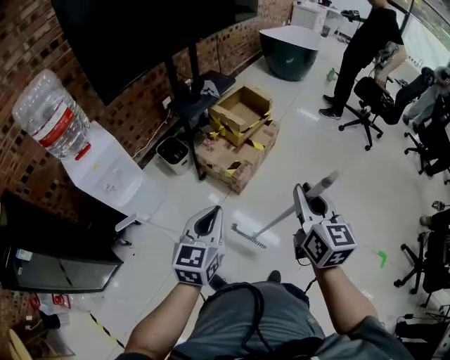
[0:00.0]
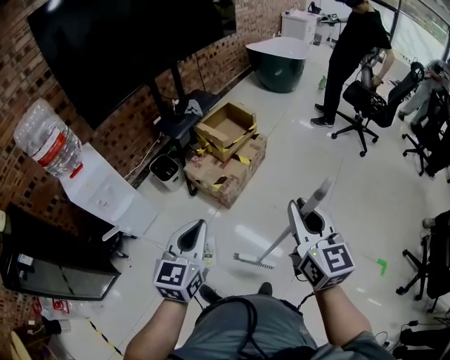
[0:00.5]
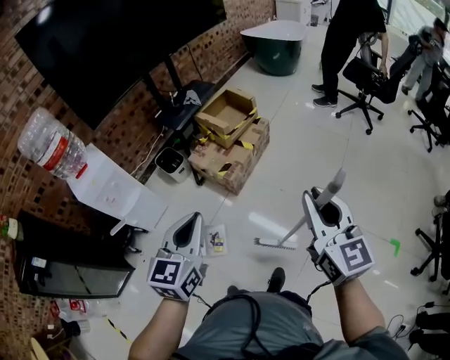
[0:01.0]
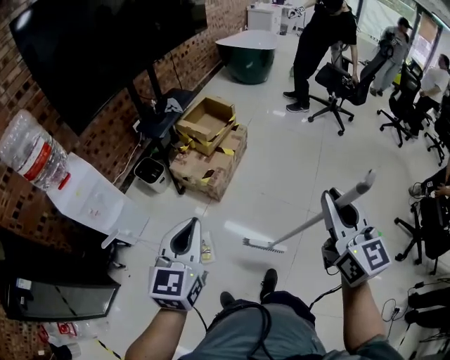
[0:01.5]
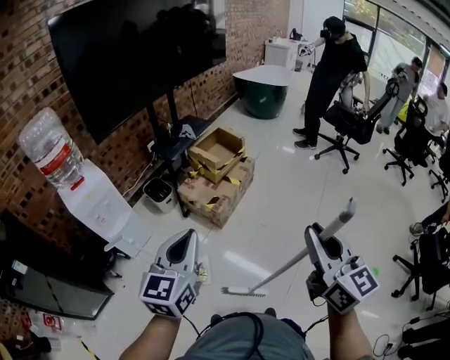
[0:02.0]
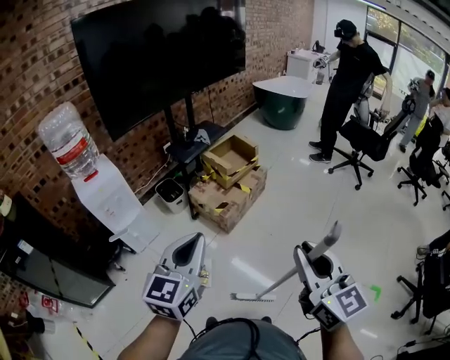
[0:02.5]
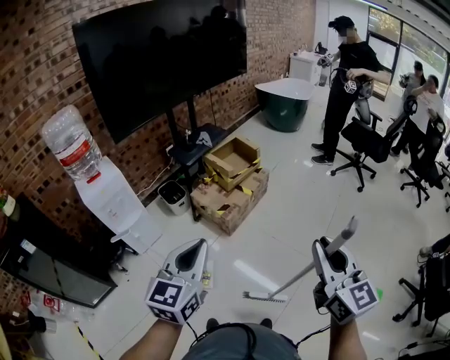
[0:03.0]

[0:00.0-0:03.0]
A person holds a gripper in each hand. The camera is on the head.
0:00.0 to 0:01.5: The right gripper is displaced to the right, backward and upward by roughly 25 cm, while the left gripper is displaced to the right, upward and backward by roughly 15 cm.
0:01.5 to 0:03.0: The left gripper travels to the right, backward and upward by approximately 15 cm, while the right gripper shifts about 10 cm backward and to the right.

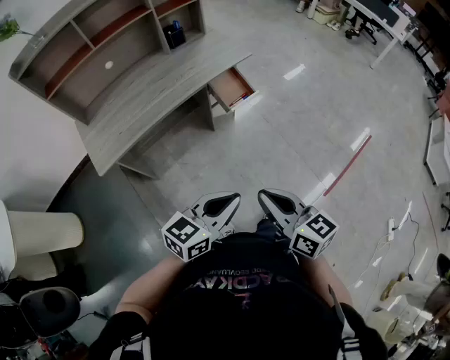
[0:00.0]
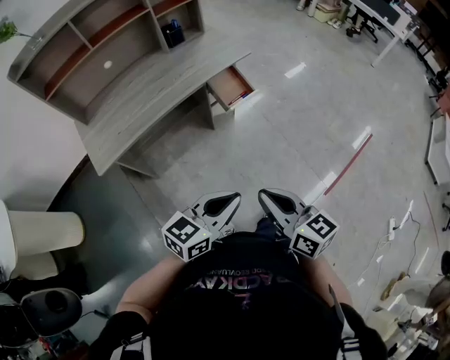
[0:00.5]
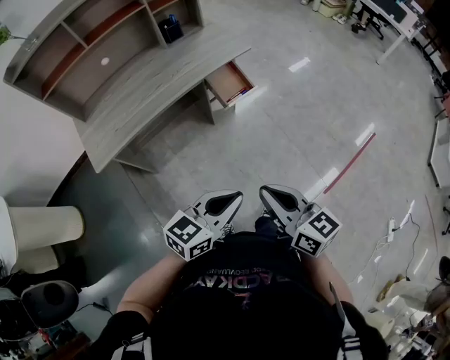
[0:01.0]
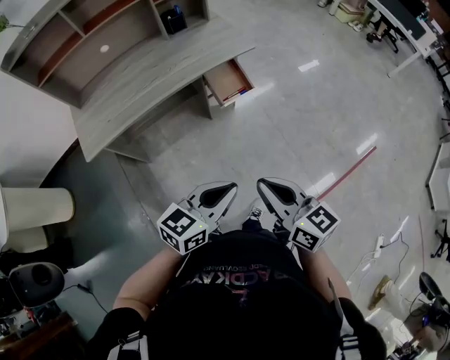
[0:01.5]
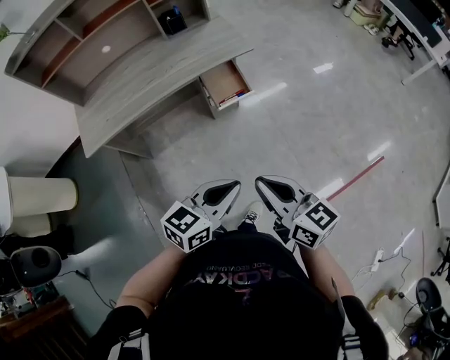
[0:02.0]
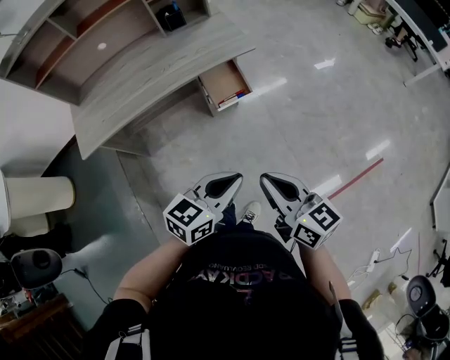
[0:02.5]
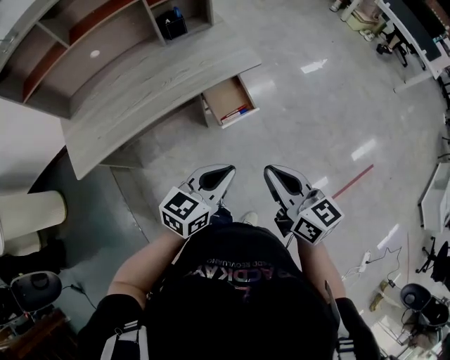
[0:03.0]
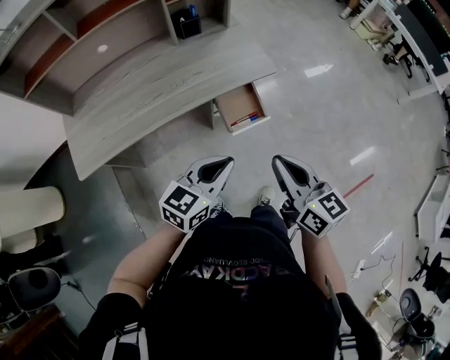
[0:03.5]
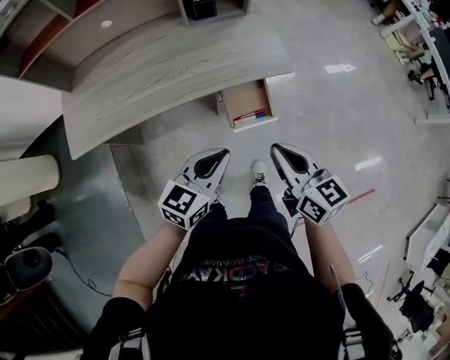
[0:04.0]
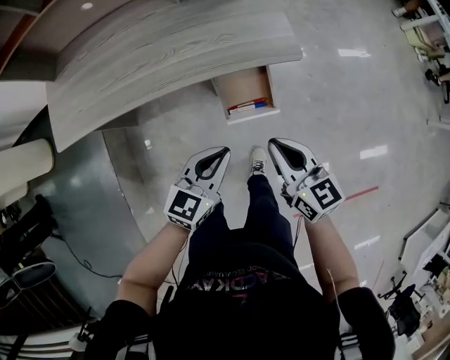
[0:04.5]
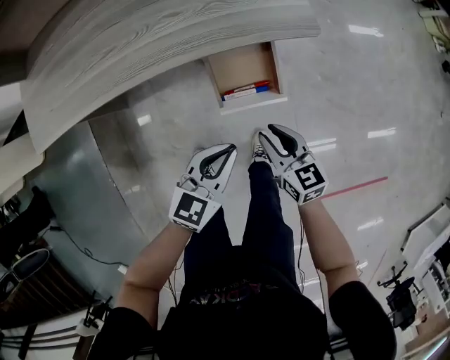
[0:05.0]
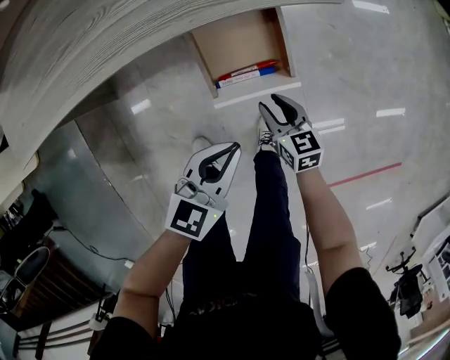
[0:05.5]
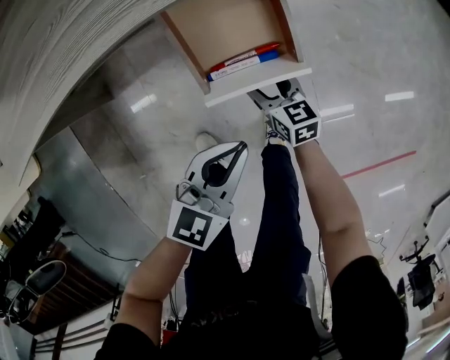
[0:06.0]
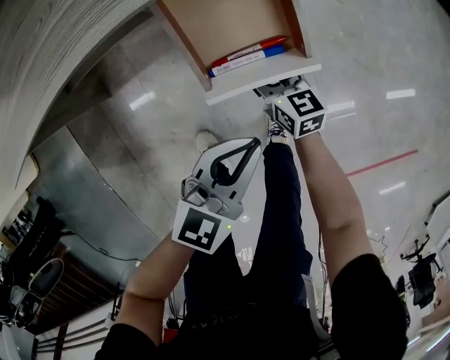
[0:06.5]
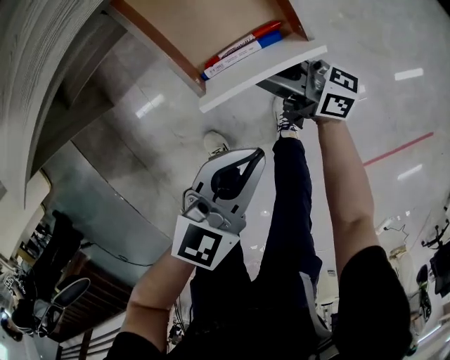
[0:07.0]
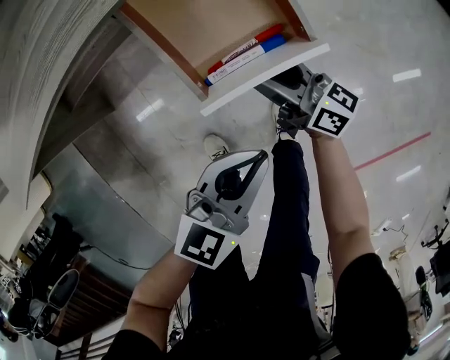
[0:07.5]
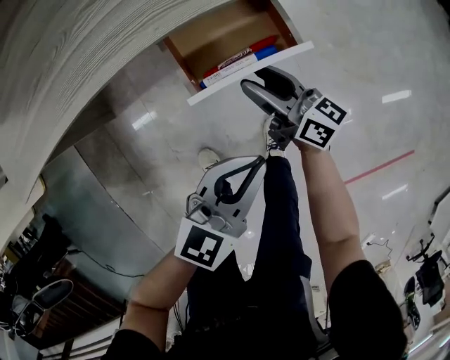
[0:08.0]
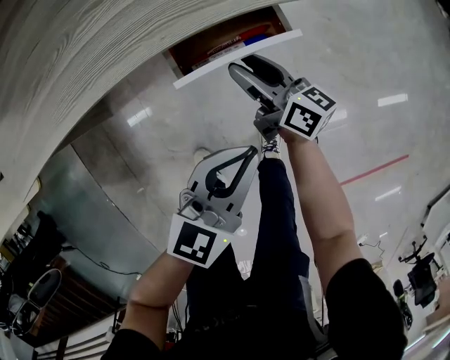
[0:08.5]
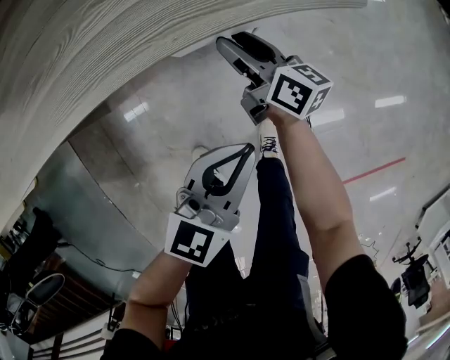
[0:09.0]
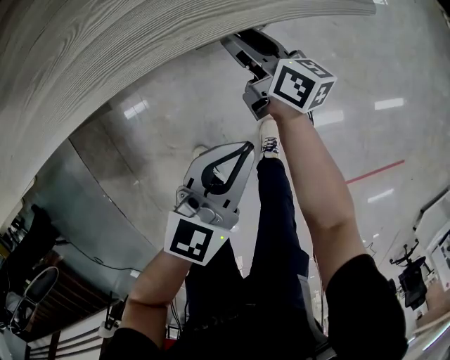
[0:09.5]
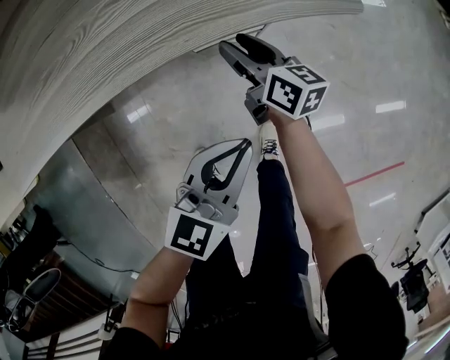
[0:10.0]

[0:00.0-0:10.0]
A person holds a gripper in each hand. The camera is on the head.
0:00.0 to 0:02.0: The two grippers go approximately 15 cm to the right and forward.
0:02.0 to 0:04.0: The two grippers go about 25 cm forward.
0:04.0 to 0:06.0: The right gripper moves downward, roughly 40 cm, and opens up, while the left gripper moves downward, some 20 cm.
0:06.0 to 0:08.0: The right gripper is displaced upward by approximately 10 cm, and angles its fingers upward, by some 30 degrees.
0:08.0 to 0:10.0: The right gripper travels forward by about 10 cm; the left gripper is displaced forward by some 5 cm.

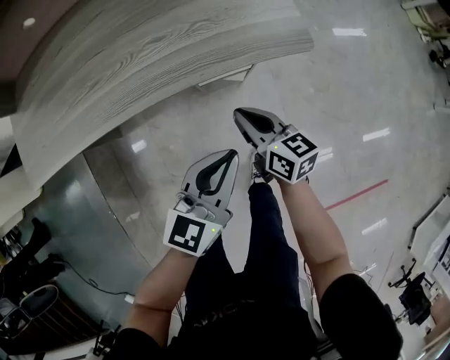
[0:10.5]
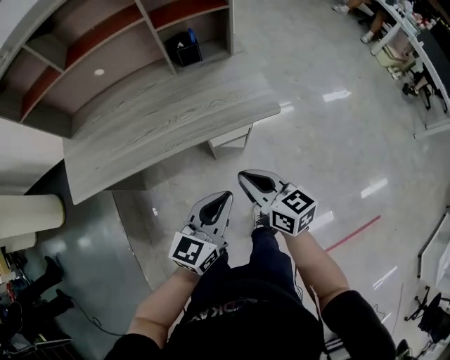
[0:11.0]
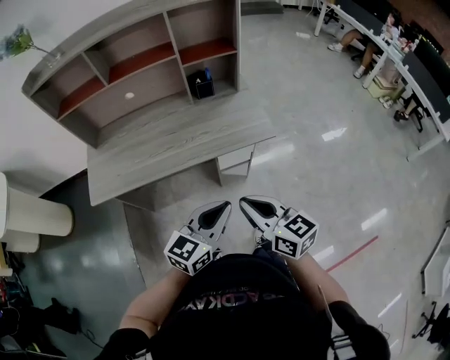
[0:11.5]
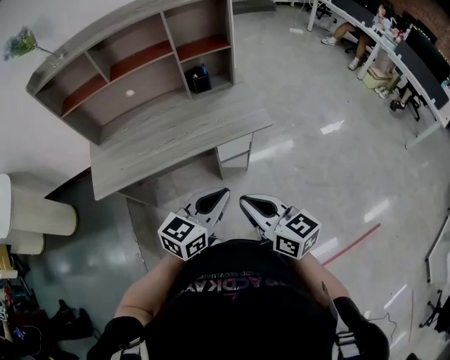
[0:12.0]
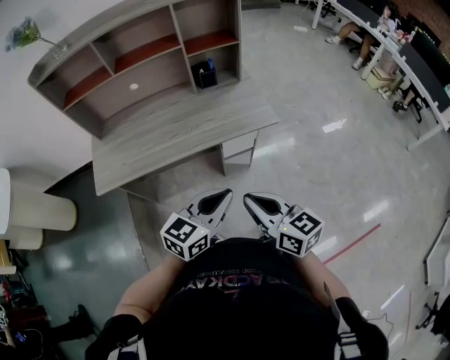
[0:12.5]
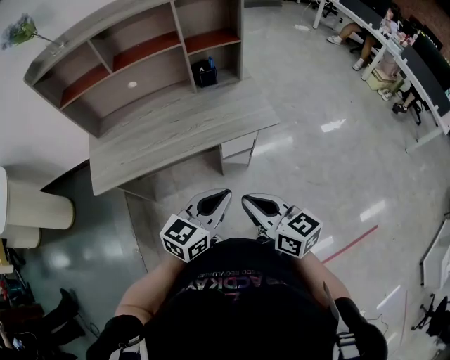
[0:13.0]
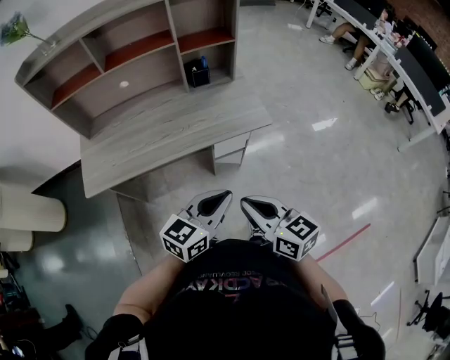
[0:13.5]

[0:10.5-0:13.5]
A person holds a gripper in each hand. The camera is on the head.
0:10.5 to 0:12.0: The right gripper is displaced upward and backward by some 35 cm; the left gripper goes about 20 cm upward and backward.
0:12.0 to 0:13.5: The grippers make only small movements.

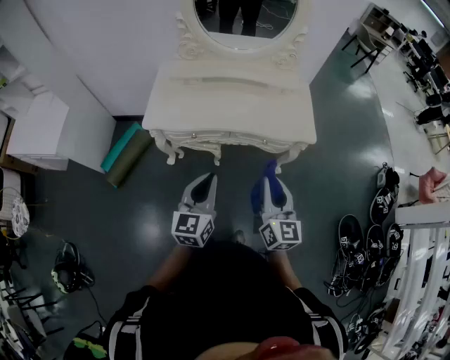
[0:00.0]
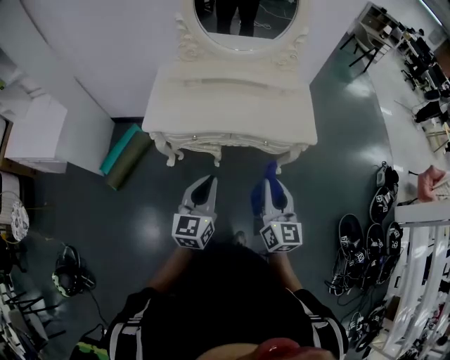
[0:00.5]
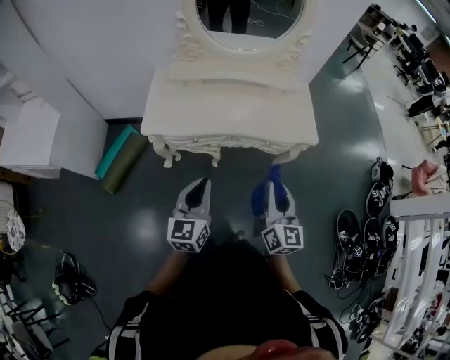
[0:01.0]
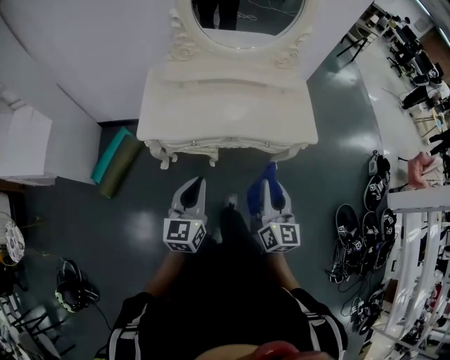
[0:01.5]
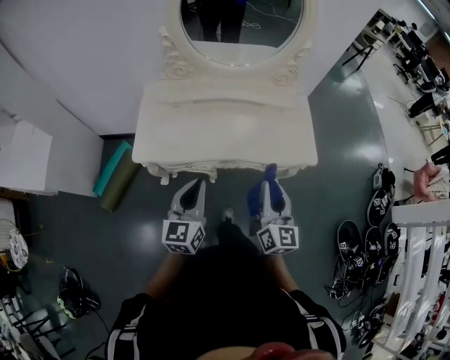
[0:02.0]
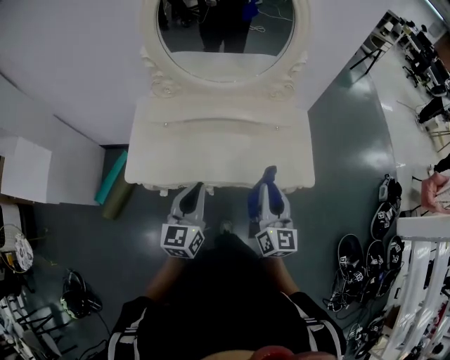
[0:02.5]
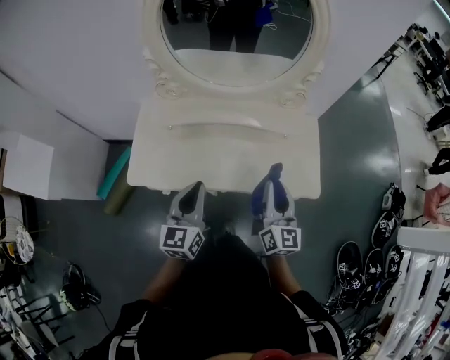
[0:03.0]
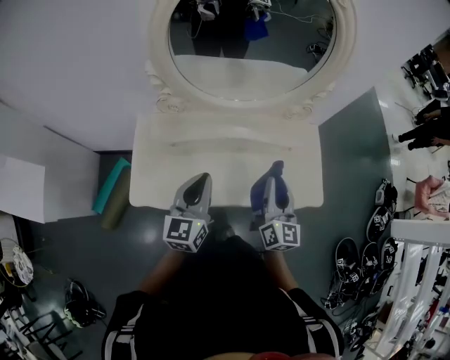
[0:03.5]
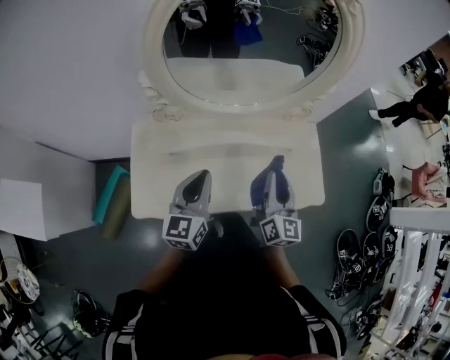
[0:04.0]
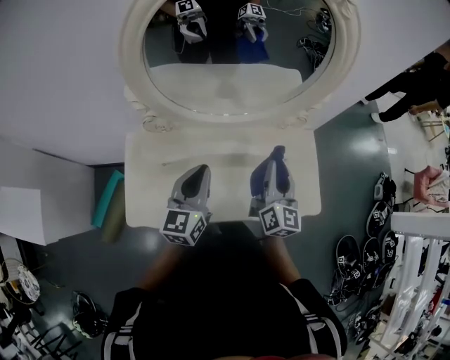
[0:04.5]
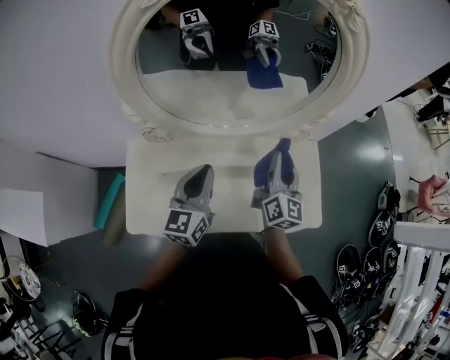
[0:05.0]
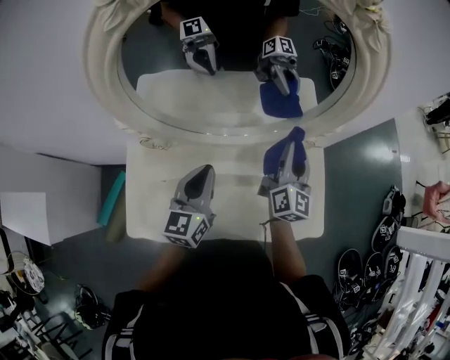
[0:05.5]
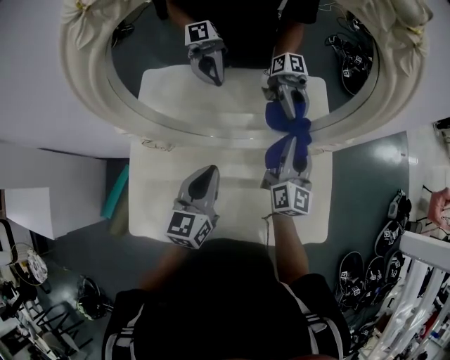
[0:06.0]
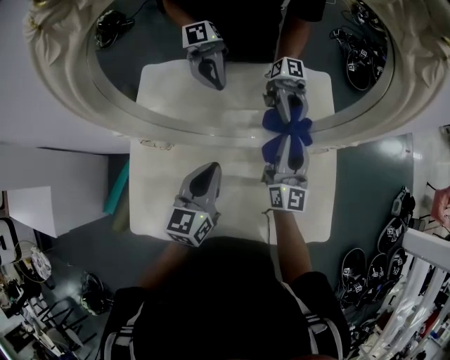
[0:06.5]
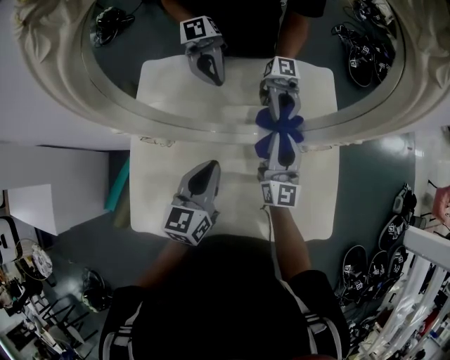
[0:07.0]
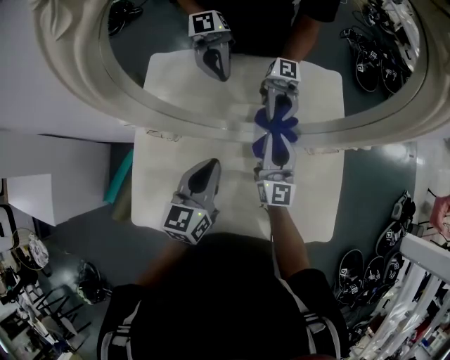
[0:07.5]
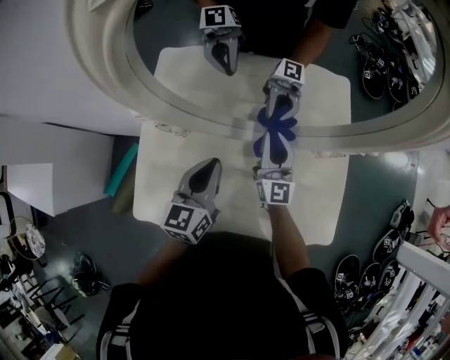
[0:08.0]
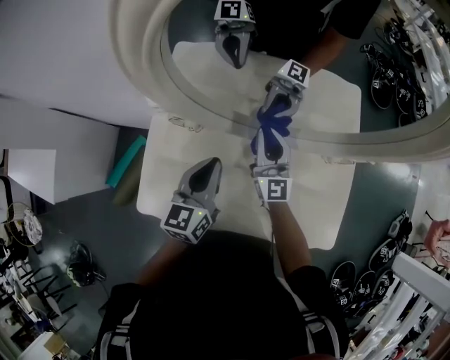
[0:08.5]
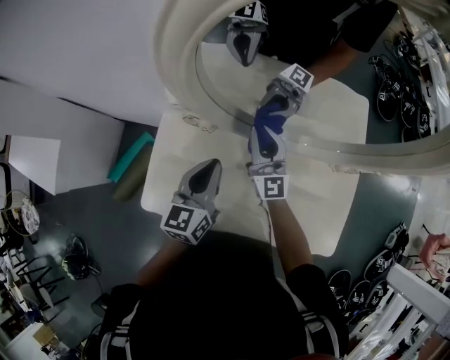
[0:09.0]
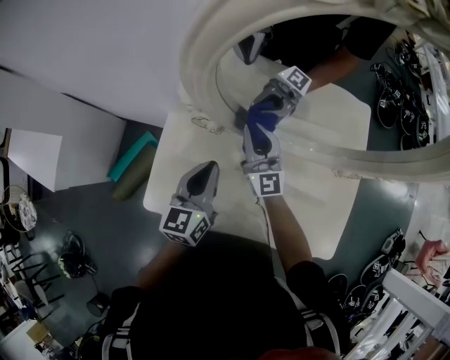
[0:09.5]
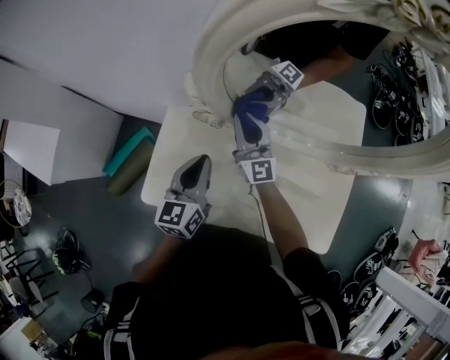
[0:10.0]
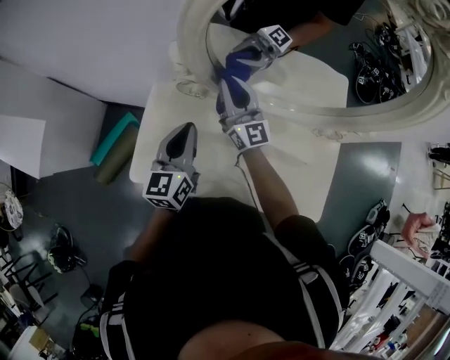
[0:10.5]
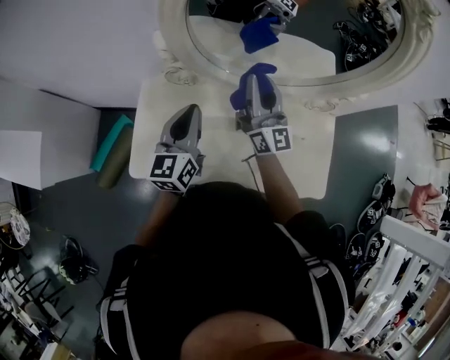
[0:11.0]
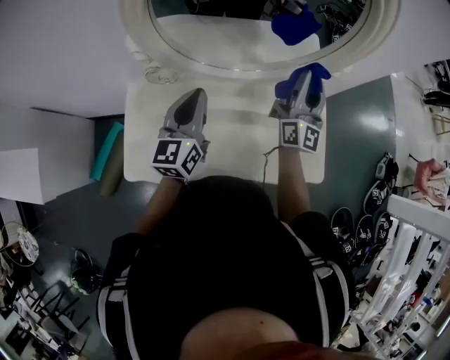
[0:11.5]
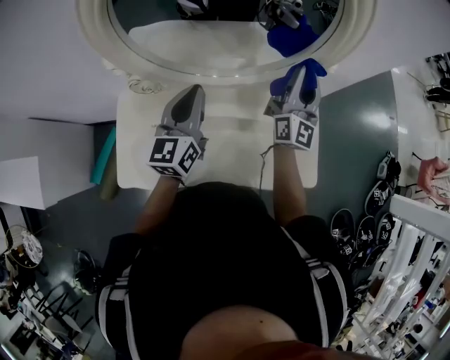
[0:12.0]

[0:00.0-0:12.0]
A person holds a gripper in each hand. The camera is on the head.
0:00.0 to 0:02.0: The left gripper shifts about 15 cm forward and to the left; the right gripper is displaced forward by some 15 cm.
0:02.0 to 0:04.0: The grippers both shift forward by approximately 30 cm.
0:04.0 to 0:06.0: The right gripper moves forward, roughly 30 cm, while the left gripper shifts about 20 cm forward.
0:06.0 to 0:08.0: The right gripper goes about 15 cm to the left and downward, and changes its angle by some 20 degrees.
0:08.0 to 0:10.0: The left gripper travels to the left by roughly 15 cm. Meanwhile the right gripper travels to the left by about 20 cm, and turns by approximately 20 degrees.
0:10.0 to 0:12.0: The right gripper changes place by roughly 40 cm, and rotates roughly 40 degrees, while the left gripper ends up about 20 cm from where it was.
